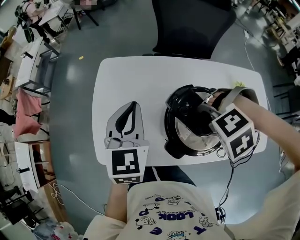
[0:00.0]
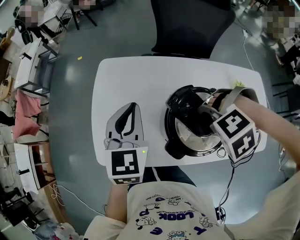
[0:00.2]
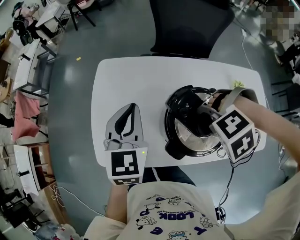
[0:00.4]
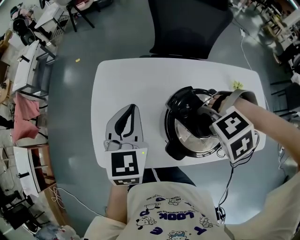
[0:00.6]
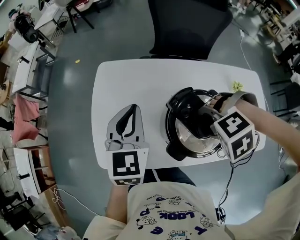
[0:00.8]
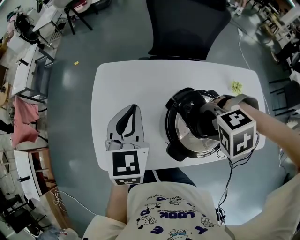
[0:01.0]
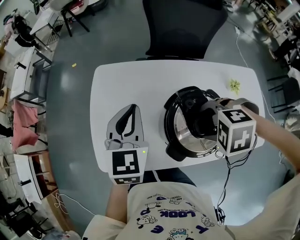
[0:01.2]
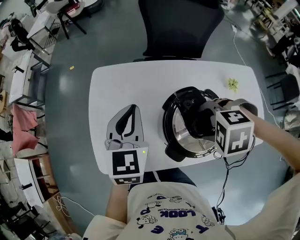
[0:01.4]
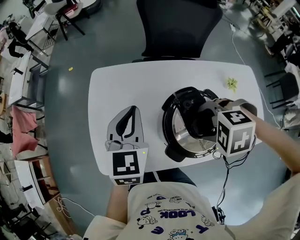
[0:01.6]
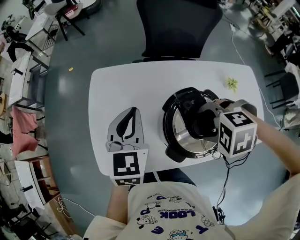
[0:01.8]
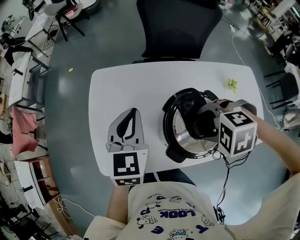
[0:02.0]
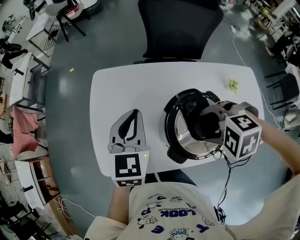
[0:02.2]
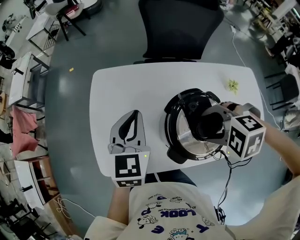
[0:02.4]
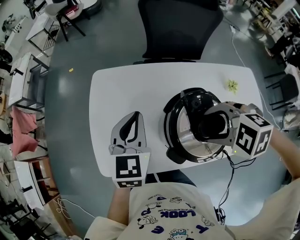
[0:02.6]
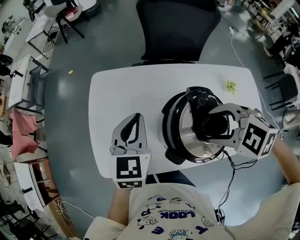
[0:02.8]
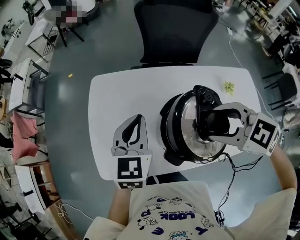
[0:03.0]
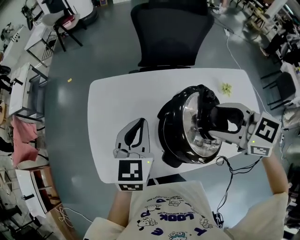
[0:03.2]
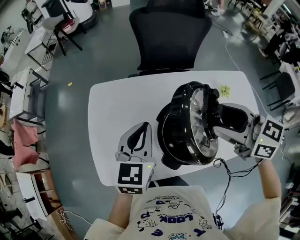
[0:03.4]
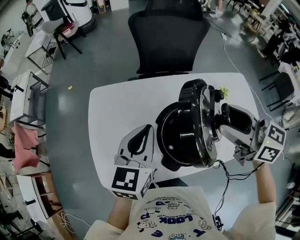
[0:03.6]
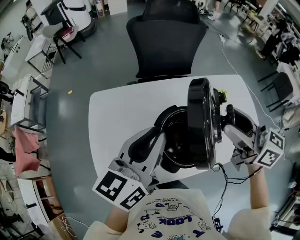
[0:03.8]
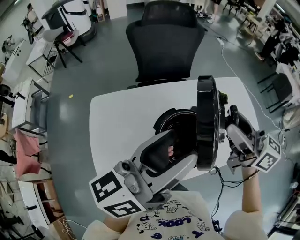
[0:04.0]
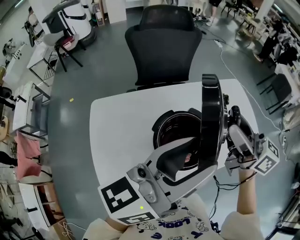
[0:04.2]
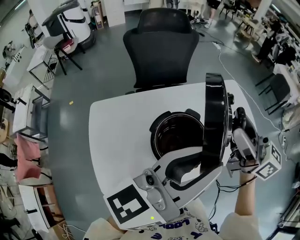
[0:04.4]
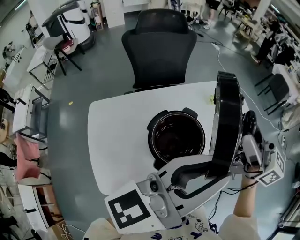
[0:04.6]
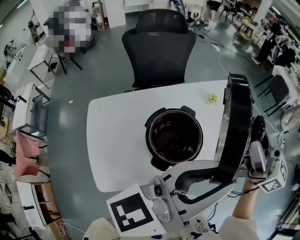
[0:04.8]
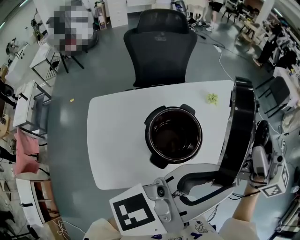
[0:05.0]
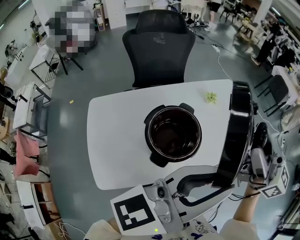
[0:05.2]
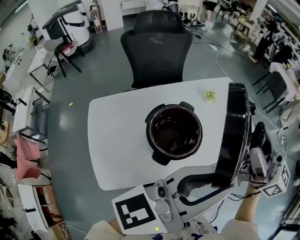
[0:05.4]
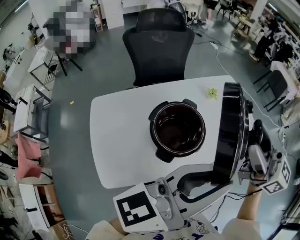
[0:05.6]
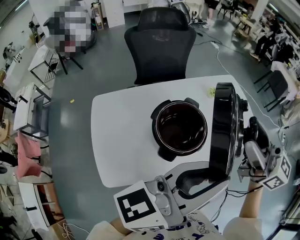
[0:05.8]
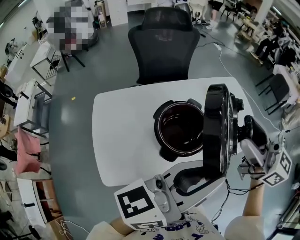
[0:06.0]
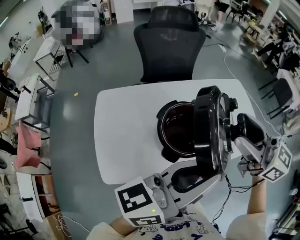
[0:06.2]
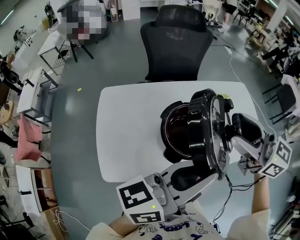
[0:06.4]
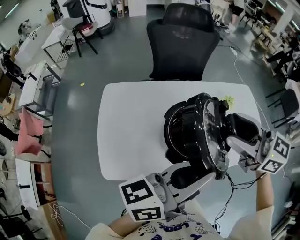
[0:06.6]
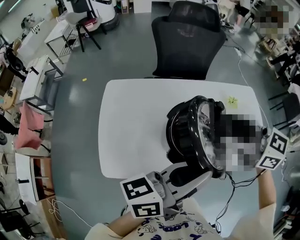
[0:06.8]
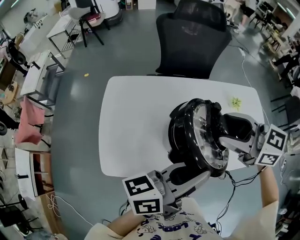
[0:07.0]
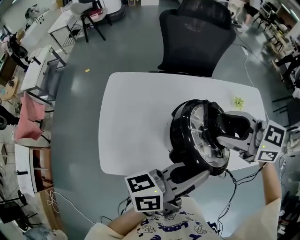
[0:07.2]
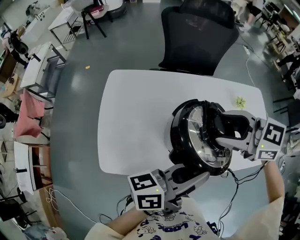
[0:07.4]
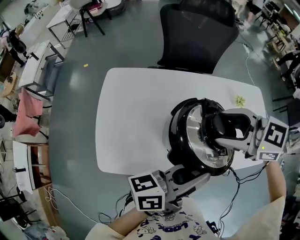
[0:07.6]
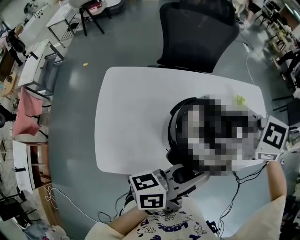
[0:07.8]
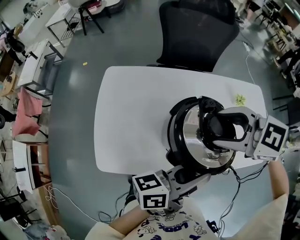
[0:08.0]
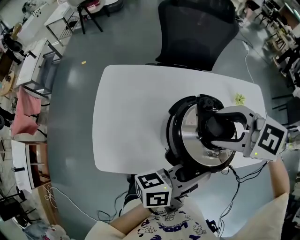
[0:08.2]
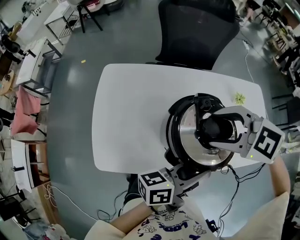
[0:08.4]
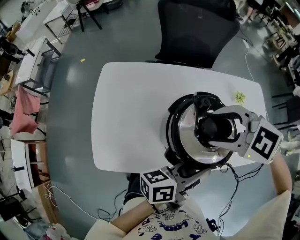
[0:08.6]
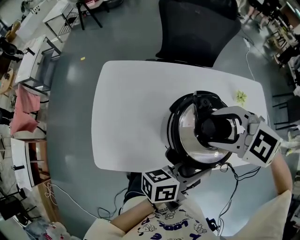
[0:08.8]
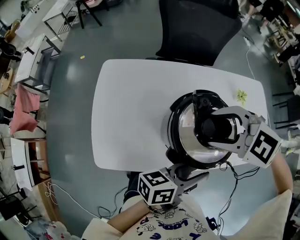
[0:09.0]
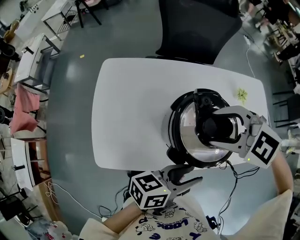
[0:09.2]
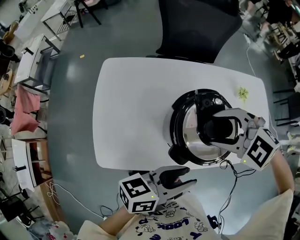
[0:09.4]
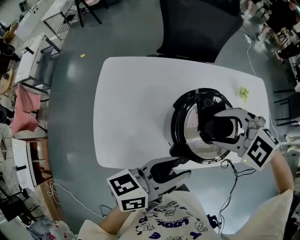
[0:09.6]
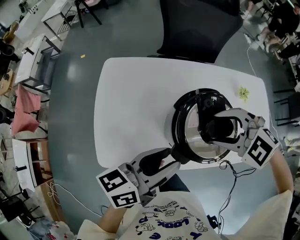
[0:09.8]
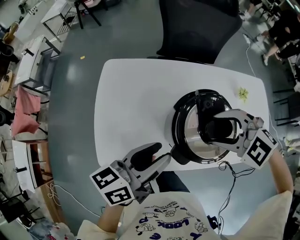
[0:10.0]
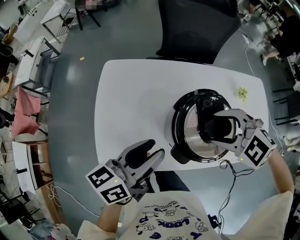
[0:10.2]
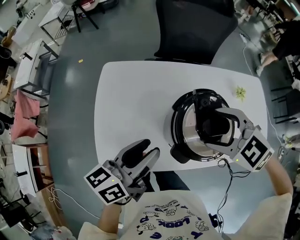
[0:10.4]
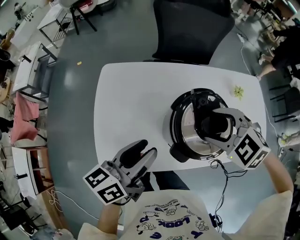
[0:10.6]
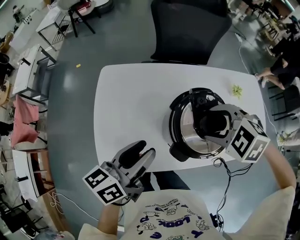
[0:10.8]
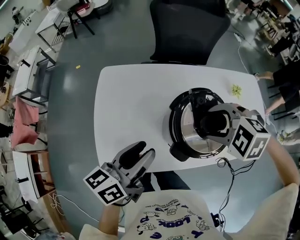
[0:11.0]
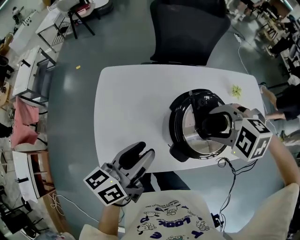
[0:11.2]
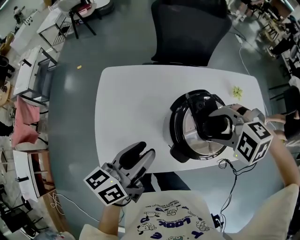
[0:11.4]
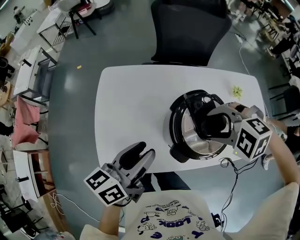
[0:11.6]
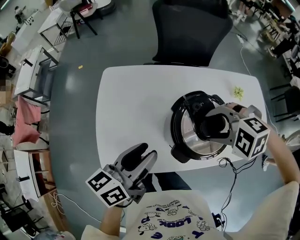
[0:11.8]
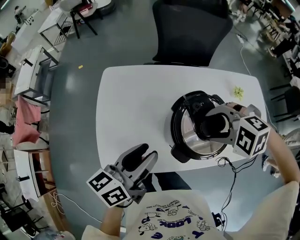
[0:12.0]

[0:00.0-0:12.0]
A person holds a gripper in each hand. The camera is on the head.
0:00.0 to 0:01.6: The right gripper swivels about 30 degrees.
0:01.6 to 0:03.0: The right gripper is displaced upward by some 10 cm, and tilts its fingers about 30 degrees upward.
0:03.0 to 0:04.4: The two grippers go about 20 cm upward. The left gripper tips its fingers upward by about 40 degrees, and opens up, while the right gripper points its fingers about 60 degrees further upward.
0:04.4 to 0:06.0: The grippers both shift backward by approximately 10 cm.
0:06.0 to 0:07.6: The left gripper heads downward, covering about 15 cm, and turns by approximately 30 degrees. Meanwhile the right gripper changes place by about 25 cm, and tips its fingers downward by some 40 degrees.
0:07.6 to 0:09.0: The right gripper travels downward by roughly 5 cm, and changes its angle by approximately 30 degrees, while the left gripper heads downward, covering some 10 cm, and opens.
0:09.0 to 0:10.4: The left gripper changes place by about 20 cm, and changes its angle by approximately 30 degrees.
0:10.4 to 0:12.0: The right gripper changes its angle by some 30 degrees.

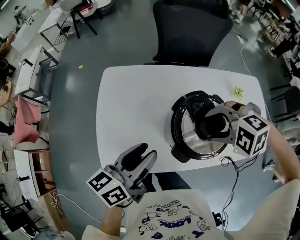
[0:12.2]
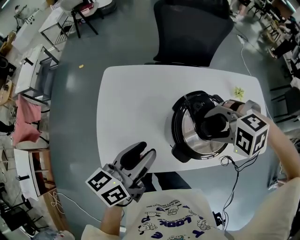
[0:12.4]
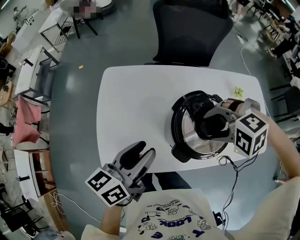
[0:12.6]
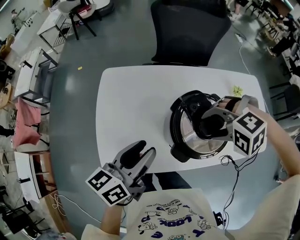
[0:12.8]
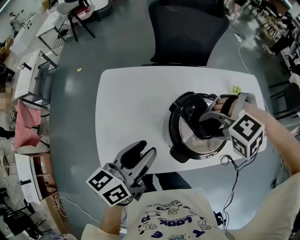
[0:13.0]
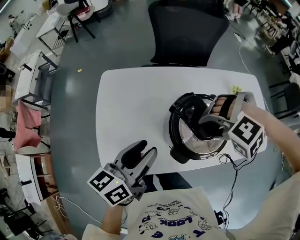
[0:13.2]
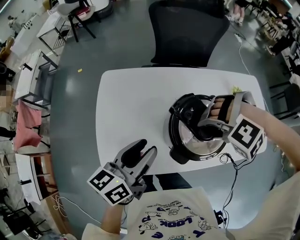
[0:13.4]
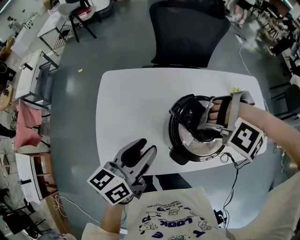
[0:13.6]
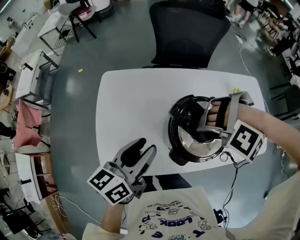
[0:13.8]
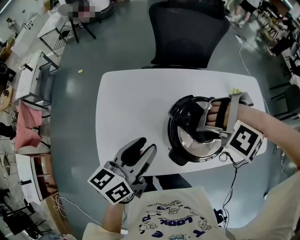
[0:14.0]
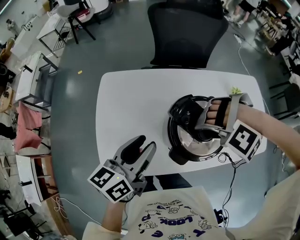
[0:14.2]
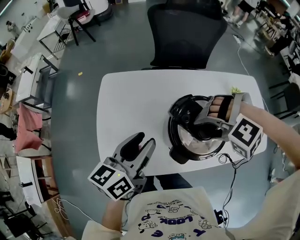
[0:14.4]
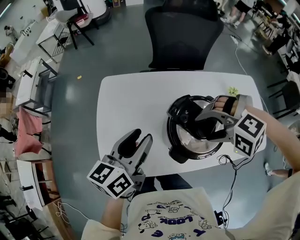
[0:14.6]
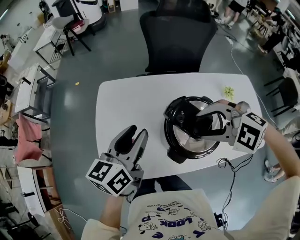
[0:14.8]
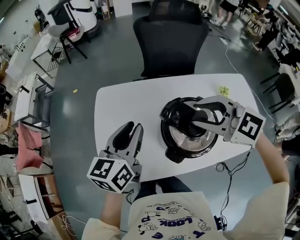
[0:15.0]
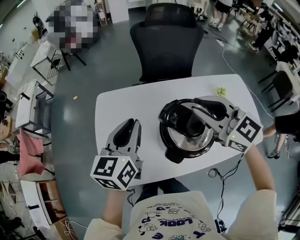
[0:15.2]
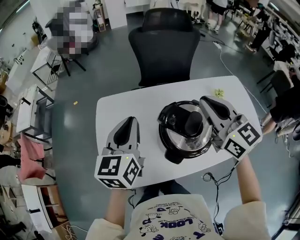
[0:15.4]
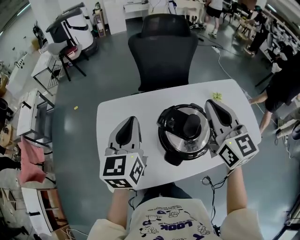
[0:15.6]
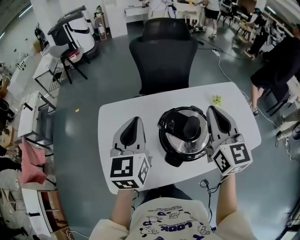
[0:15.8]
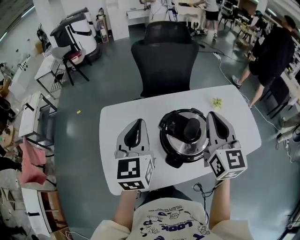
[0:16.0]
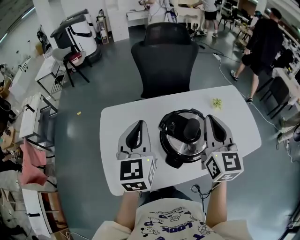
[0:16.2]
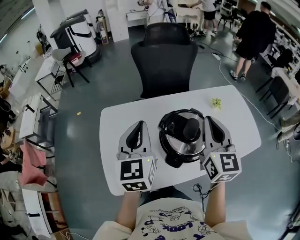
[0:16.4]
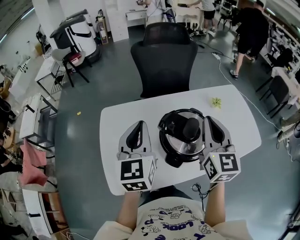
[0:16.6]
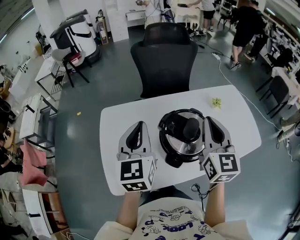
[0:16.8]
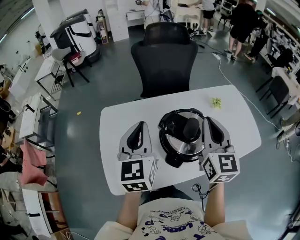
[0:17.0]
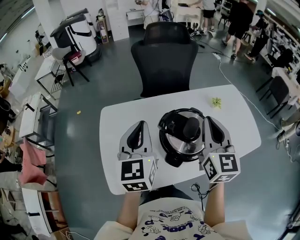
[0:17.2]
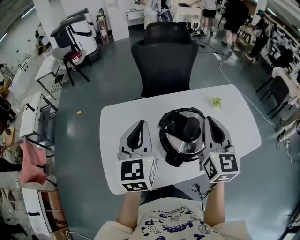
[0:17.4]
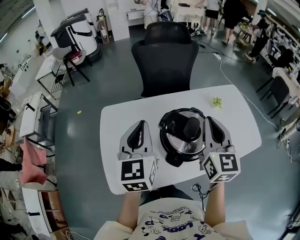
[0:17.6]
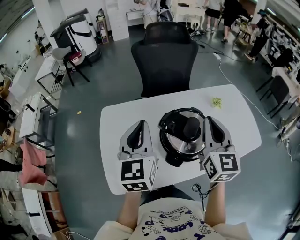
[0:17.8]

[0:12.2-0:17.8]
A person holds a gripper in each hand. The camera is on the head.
0:12.2 to 0:13.6: The right gripper rotates around the line of its fingers by approximately 50 degrees, counterclockwise from behind.
0:13.6 to 0:15.0: The left gripper moves some 5 cm, while the right gripper moves upward, approximately 10 cm, points its fingers approximately 60 degrees further upward, and closes.
0:15.0 to 0:16.4: The right gripper heads to the right, covering some 10 cm, swivels some 70 degrees, and closes up; the left gripper is displaced upward by roughly 5 cm, changes its angle by about 20 degrees, and closes.
0:16.4 to 0:17.8: Both grippers stay put.

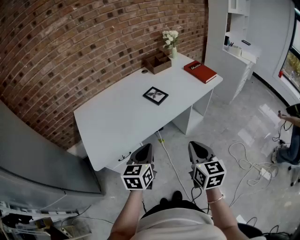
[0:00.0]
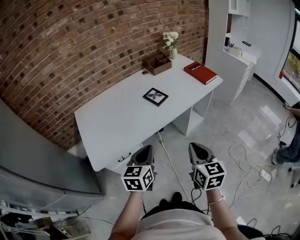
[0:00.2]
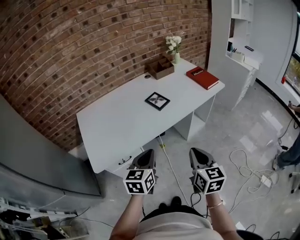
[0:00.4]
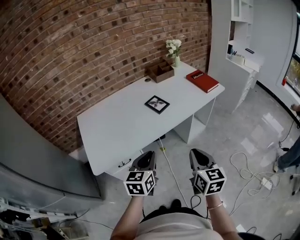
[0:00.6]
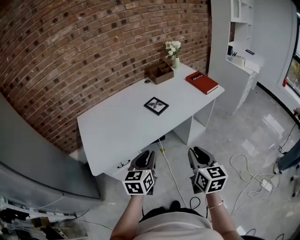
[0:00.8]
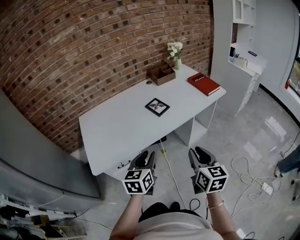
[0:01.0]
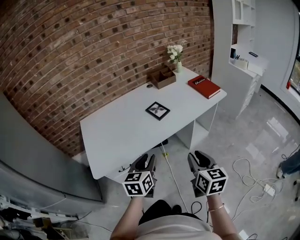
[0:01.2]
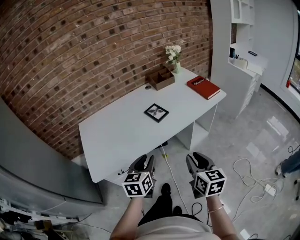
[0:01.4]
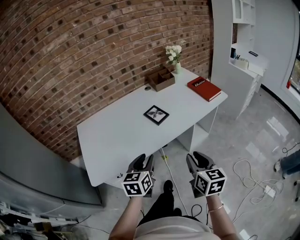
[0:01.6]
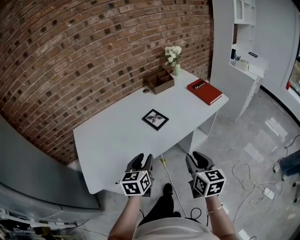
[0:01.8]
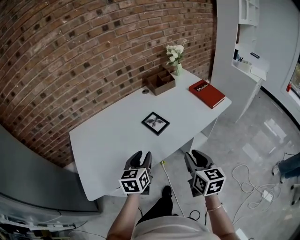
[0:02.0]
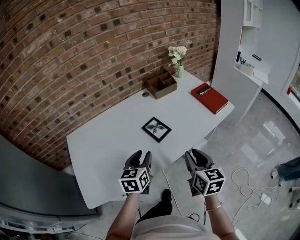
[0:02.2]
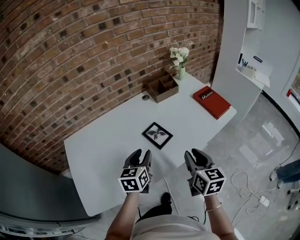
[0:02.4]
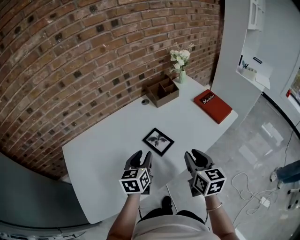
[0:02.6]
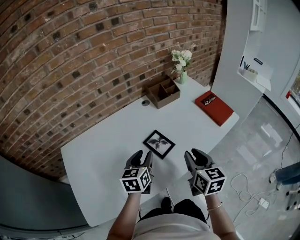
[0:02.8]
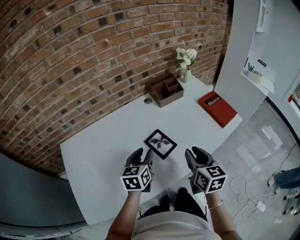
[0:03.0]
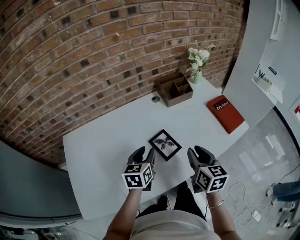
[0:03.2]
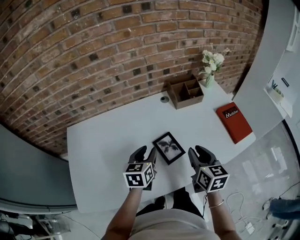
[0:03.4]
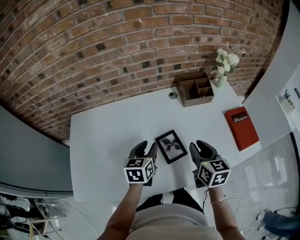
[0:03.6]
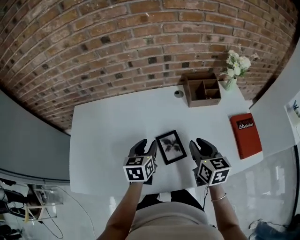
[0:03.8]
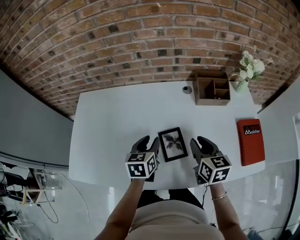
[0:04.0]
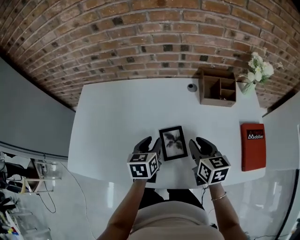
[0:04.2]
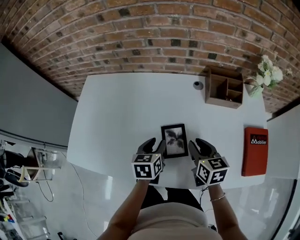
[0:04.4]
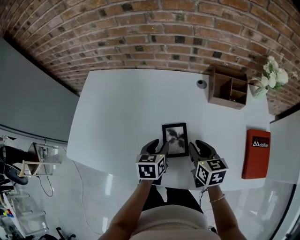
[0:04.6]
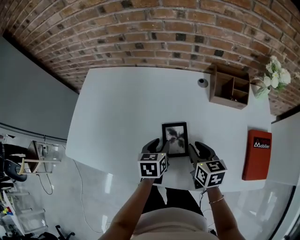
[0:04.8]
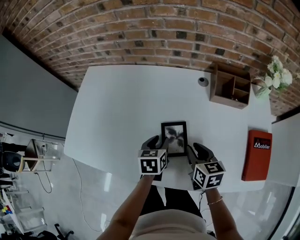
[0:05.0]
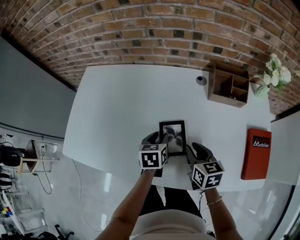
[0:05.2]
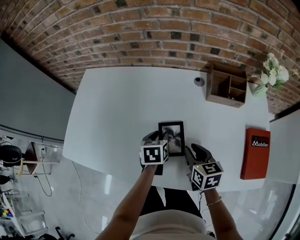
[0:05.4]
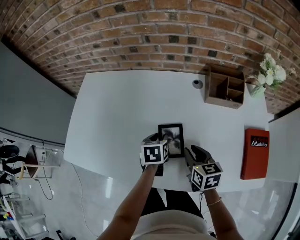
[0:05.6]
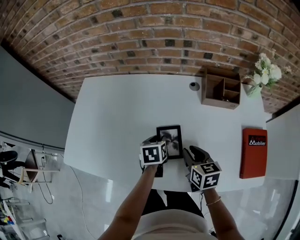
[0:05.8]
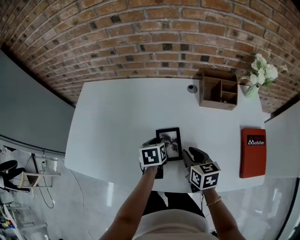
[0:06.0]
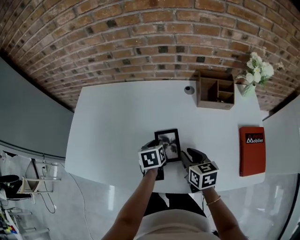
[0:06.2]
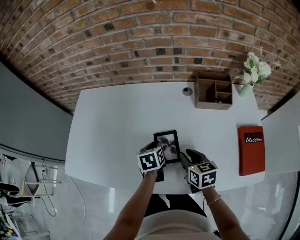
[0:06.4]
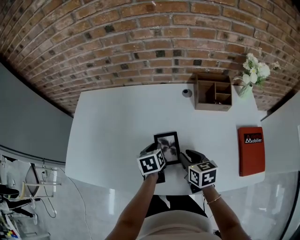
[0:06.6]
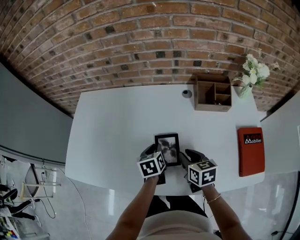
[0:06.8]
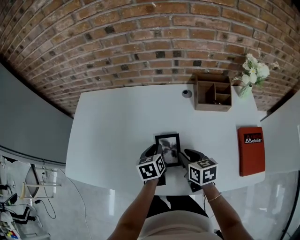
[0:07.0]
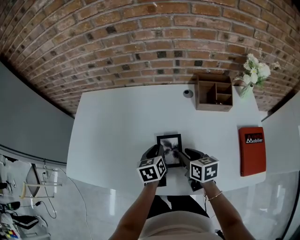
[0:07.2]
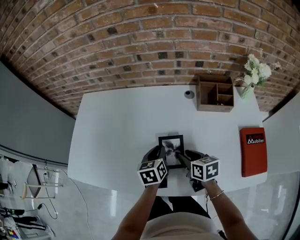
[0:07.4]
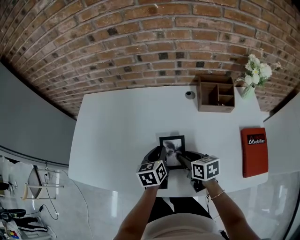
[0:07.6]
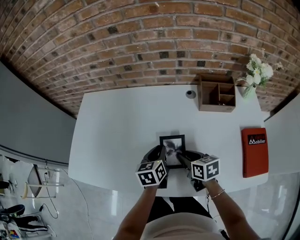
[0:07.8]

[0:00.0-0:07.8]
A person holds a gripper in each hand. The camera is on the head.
0:00.0 to 0:01.6: The grippers both shift forward by roughly 5 cm. The right gripper opens its fingers; the left gripper opens its fingers.
0:01.6 to 0:03.2: Both grippers travel together forward, roughly 30 cm.
0:03.2 to 0:04.6: The right gripper changes place by approximately 15 cm, and turns by some 40 degrees, while the left gripper is displaced downward by approximately 10 cm, and turns by roughly 40 degrees.
0:04.6 to 0:07.8: The grippers stay close to where they were, moving slightly.
